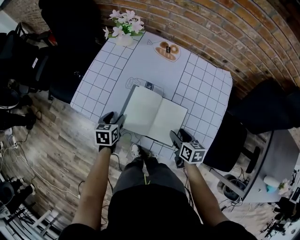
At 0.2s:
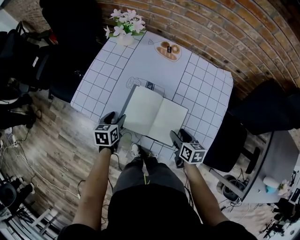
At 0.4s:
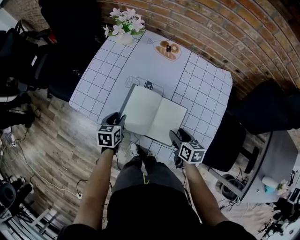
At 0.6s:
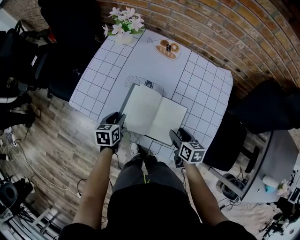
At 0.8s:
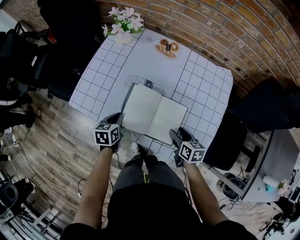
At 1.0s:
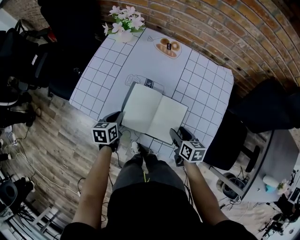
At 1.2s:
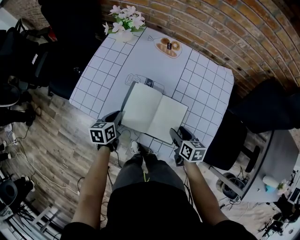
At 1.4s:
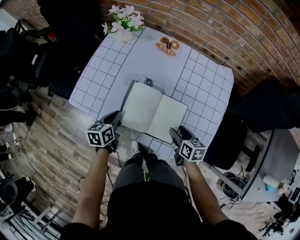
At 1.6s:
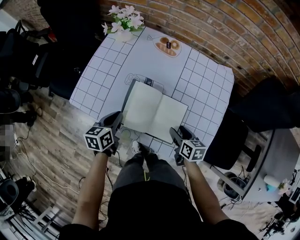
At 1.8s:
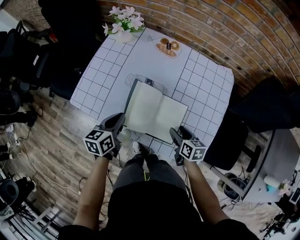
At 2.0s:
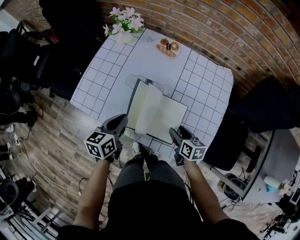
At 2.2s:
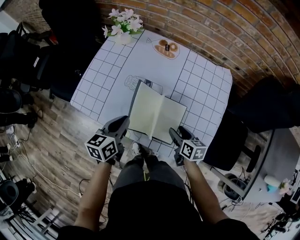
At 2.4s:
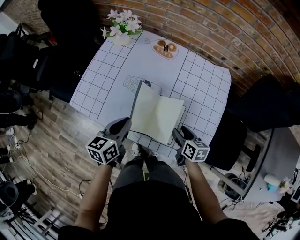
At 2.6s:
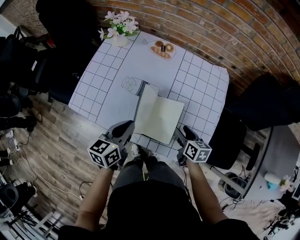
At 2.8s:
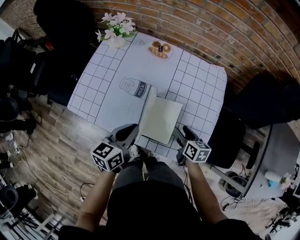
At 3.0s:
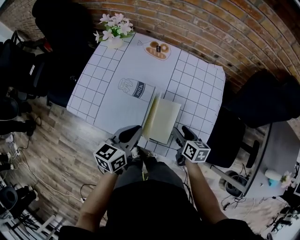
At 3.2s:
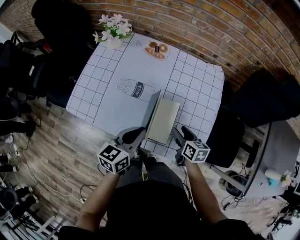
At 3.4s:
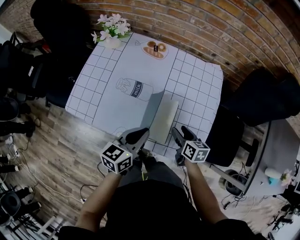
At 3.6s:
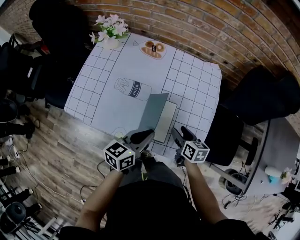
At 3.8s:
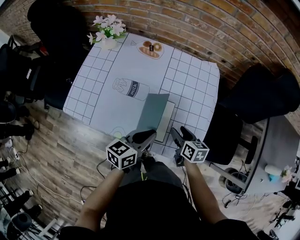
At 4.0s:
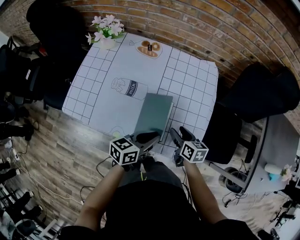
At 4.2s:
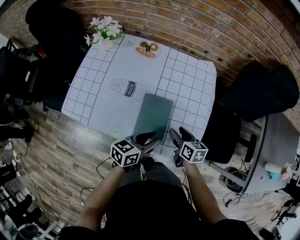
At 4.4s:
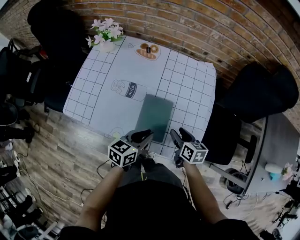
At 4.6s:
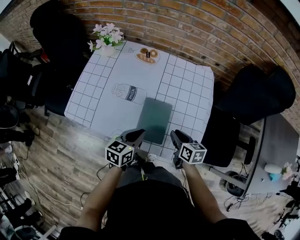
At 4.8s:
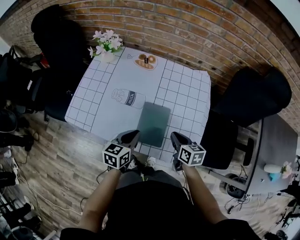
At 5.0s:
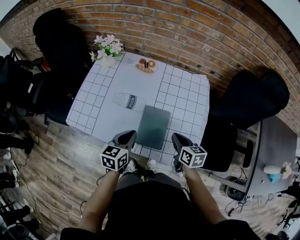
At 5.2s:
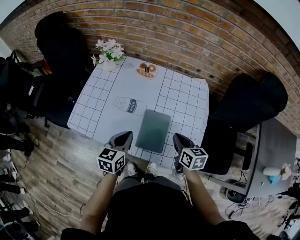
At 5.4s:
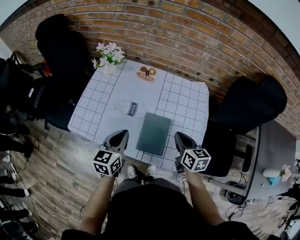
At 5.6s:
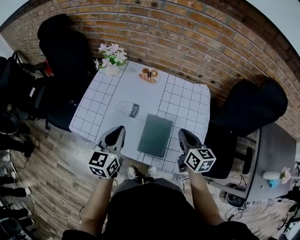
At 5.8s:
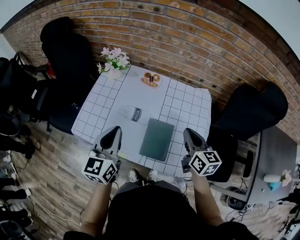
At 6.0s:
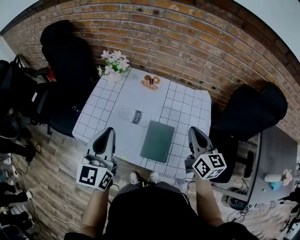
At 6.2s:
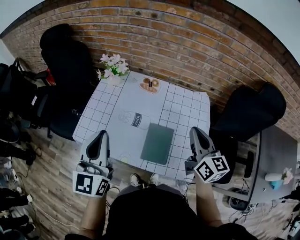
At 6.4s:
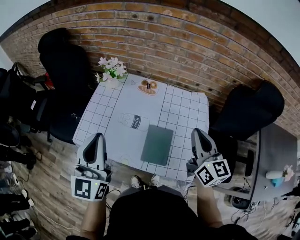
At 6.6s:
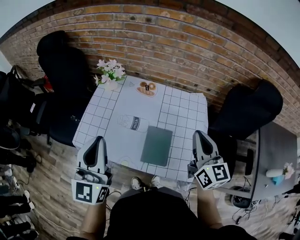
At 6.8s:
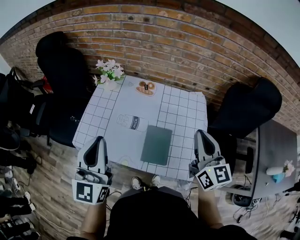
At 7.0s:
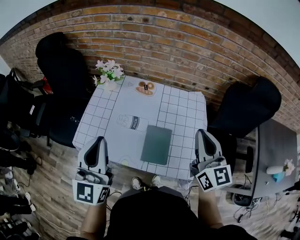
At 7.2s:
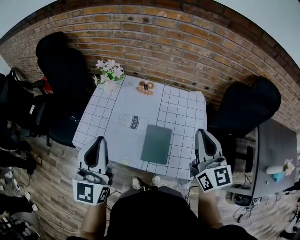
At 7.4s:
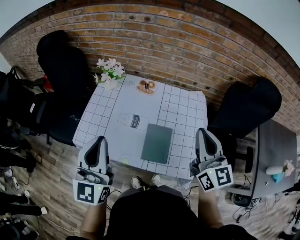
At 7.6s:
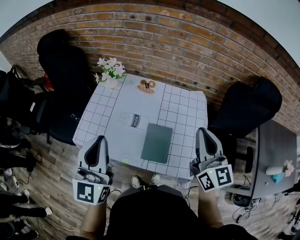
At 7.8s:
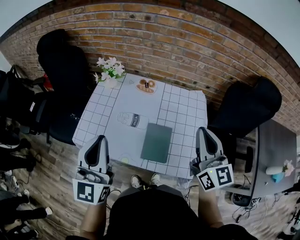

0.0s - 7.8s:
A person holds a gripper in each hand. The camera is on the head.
0.0s - 1.6s: The left gripper goes approximately 5 cm upward, and closes up.
1.6s - 3.2s: The left gripper heads to the right and upward, covering about 15 cm, and rotates roughly 20 degrees. Meanwhile the right gripper changes place by some 5 cm.
3.2s - 4.6s: The right gripper closes its fingers. The left gripper is displaced downward by approximately 5 cm, reaches some 10 cm to the right, then returns, and opens and closes again.
4.6s - 6.2s: The right gripper heads upward, covering roughly 25 cm, tips its fingers upward by approximately 30 degrees, and closes up. The left gripper travels upward and to the left by some 35 cm, and tilts its fingers roughly 30 degrees upward.
6.2s - 7.8s: The right gripper goes roughly 10 cm upward.

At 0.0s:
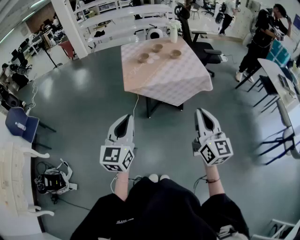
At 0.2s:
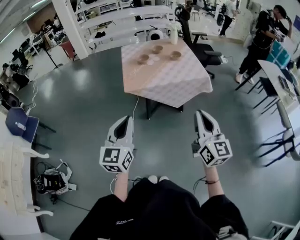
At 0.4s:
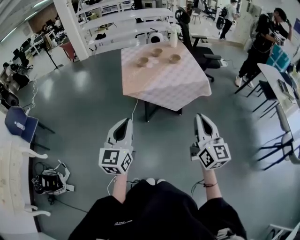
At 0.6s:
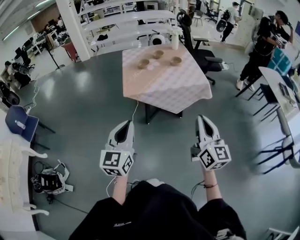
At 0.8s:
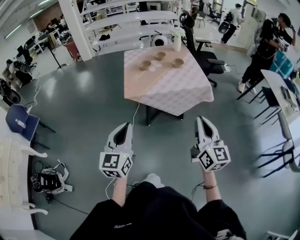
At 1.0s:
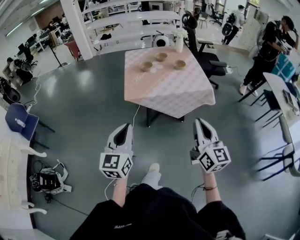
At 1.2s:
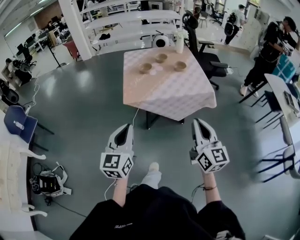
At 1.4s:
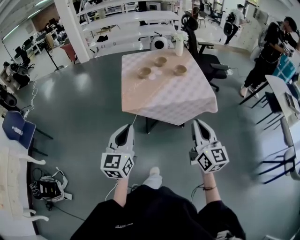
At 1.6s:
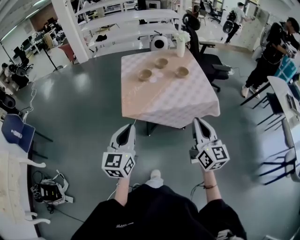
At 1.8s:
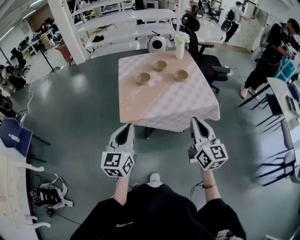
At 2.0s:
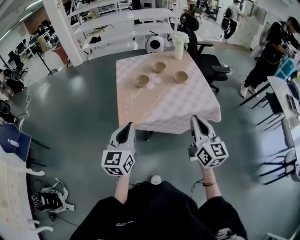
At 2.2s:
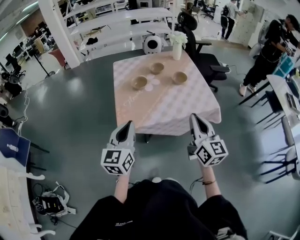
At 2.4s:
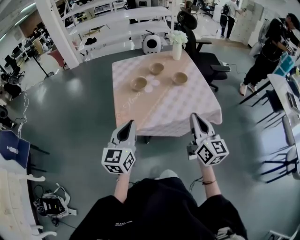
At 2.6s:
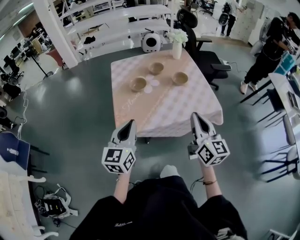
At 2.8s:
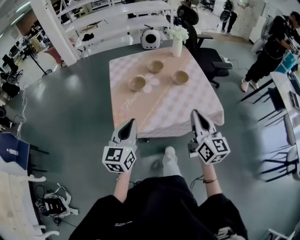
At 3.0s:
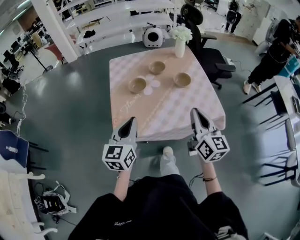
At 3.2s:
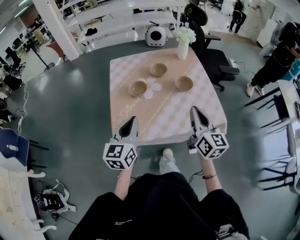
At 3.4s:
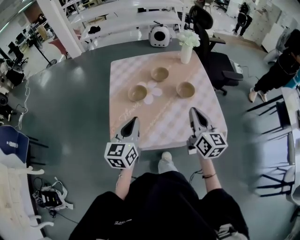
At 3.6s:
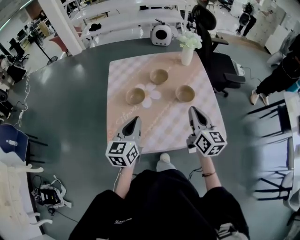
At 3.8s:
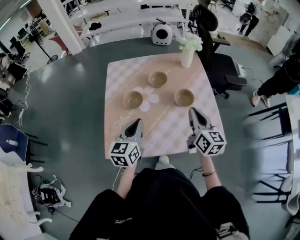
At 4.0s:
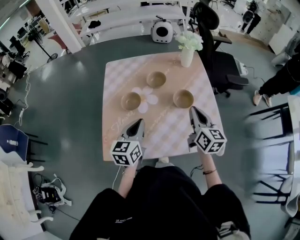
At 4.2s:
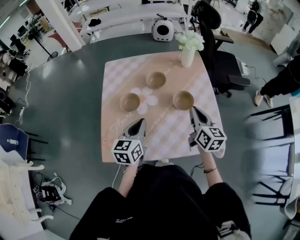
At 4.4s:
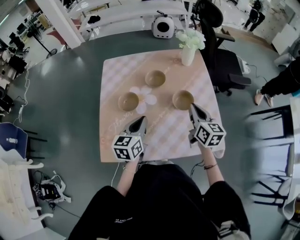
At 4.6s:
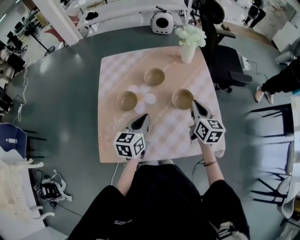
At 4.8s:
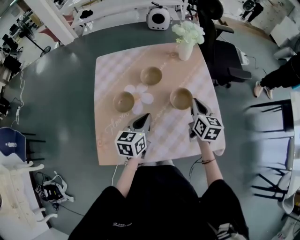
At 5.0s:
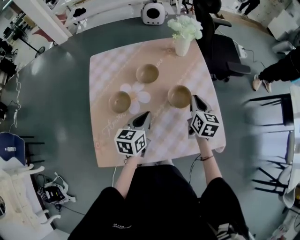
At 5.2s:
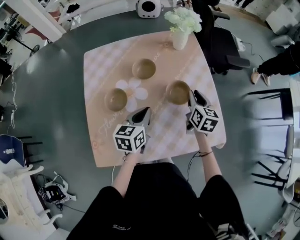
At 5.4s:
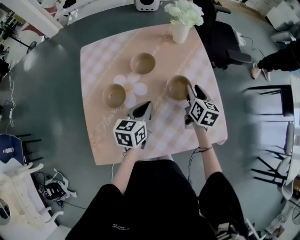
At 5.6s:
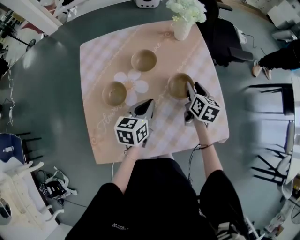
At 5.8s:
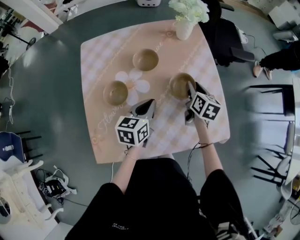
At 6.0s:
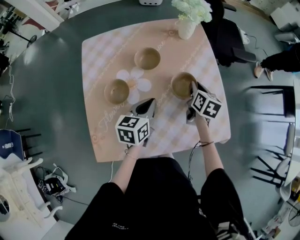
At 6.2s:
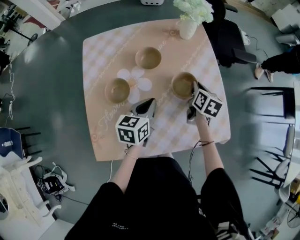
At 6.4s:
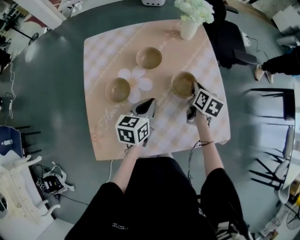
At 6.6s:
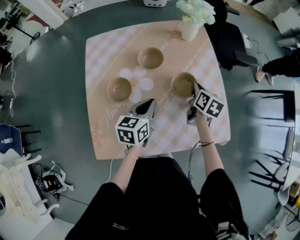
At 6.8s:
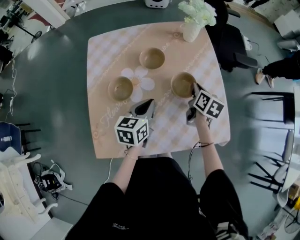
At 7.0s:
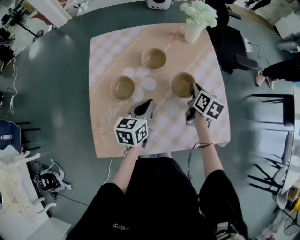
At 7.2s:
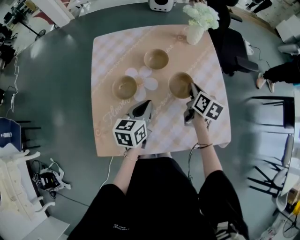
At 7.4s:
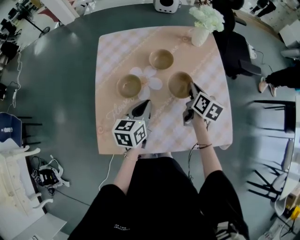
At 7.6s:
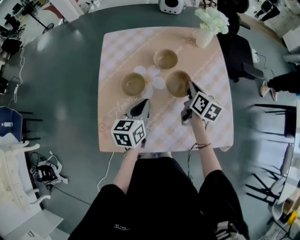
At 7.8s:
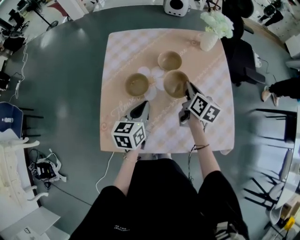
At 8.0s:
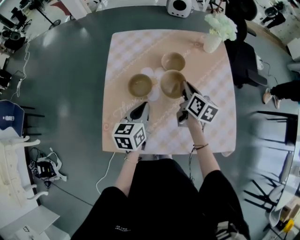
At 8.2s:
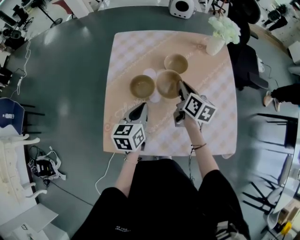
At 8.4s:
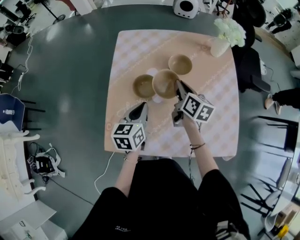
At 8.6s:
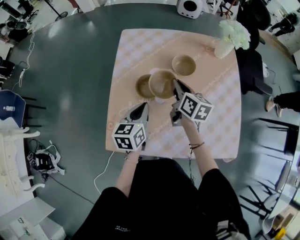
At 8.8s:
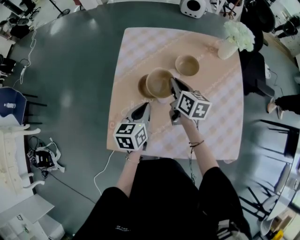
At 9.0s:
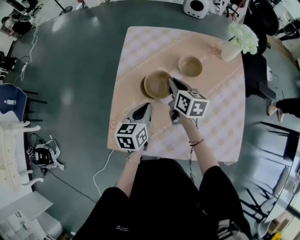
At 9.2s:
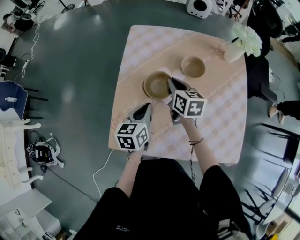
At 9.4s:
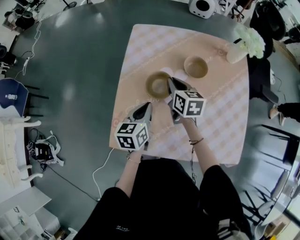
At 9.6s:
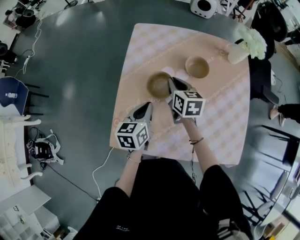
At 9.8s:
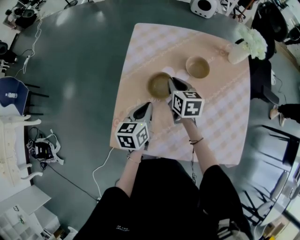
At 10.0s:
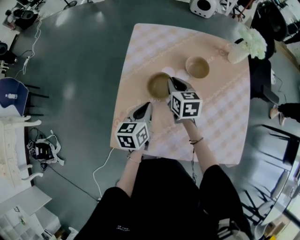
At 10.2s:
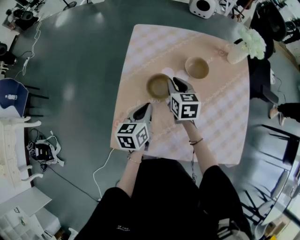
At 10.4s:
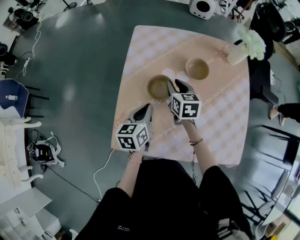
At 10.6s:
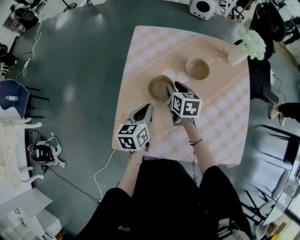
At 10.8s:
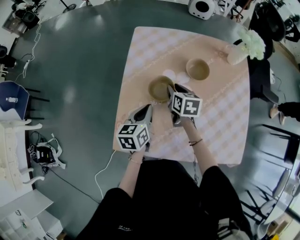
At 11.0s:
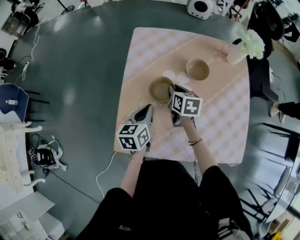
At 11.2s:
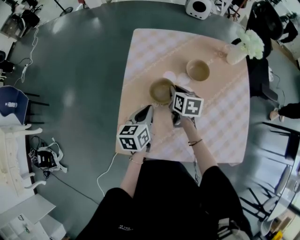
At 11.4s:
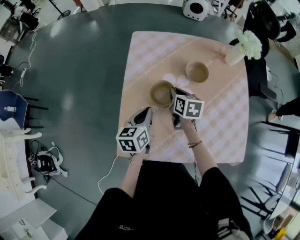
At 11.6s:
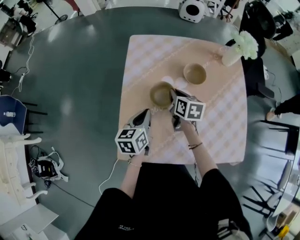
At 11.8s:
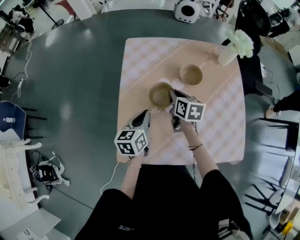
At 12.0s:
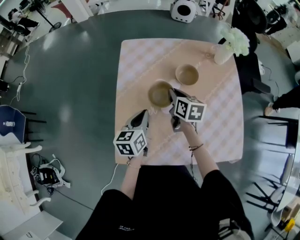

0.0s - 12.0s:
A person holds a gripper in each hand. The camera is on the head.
0.0s - 1.6s: The two grippers go some 20 cm forward.
1.6s - 3.0s: The two grippers go about 25 cm forward.
3.0s - 4.4s: The right gripper travels forward and downward by roughly 30 cm, while the left gripper travels forward, downward and to the right by about 25 cm.
4.4s - 6.0s: The right gripper travels downward and forward by approximately 15 cm, swivels approximately 30 degrees, and opens, then closes once more. The left gripper is displaced forward and downward by approximately 10 cm.
6.0s - 7.6s: Both grippers move to the left, roughly 10 cm.
7.6s - 9.0s: The right gripper travels to the left by some 20 cm, and changes its angle by about 20 degrees. The left gripper heads to the left, covering roughly 10 cm.
9.0s - 10.4s: The right gripper opens.
10.4s - 12.0s: The right gripper closes.

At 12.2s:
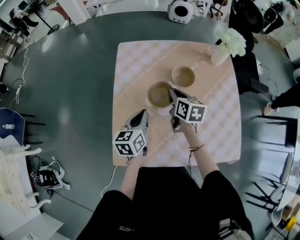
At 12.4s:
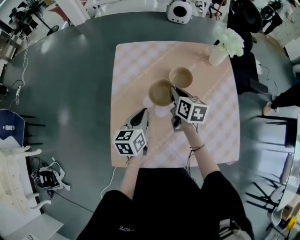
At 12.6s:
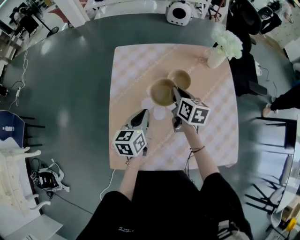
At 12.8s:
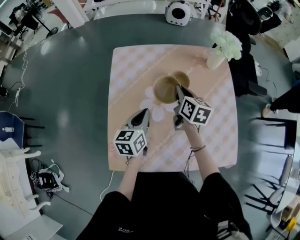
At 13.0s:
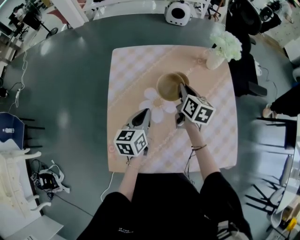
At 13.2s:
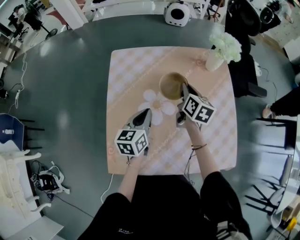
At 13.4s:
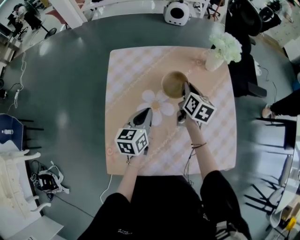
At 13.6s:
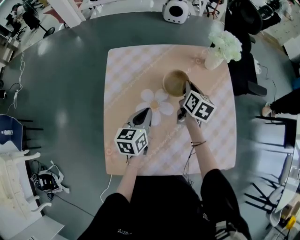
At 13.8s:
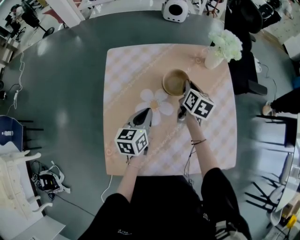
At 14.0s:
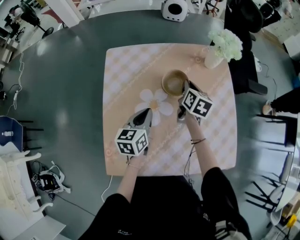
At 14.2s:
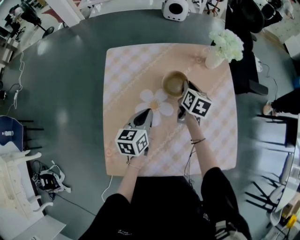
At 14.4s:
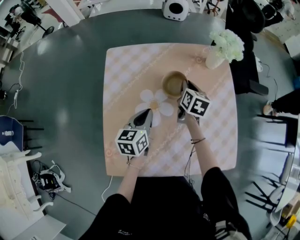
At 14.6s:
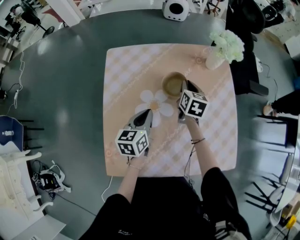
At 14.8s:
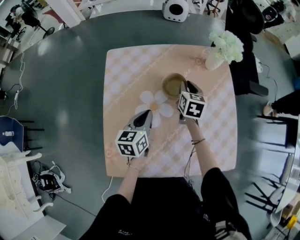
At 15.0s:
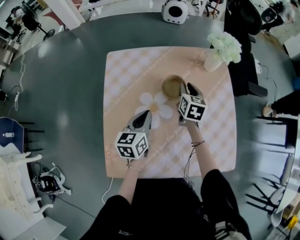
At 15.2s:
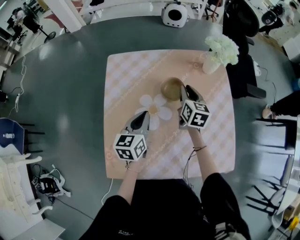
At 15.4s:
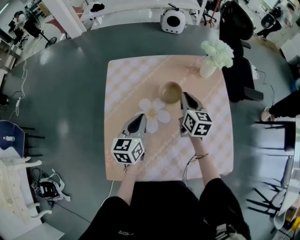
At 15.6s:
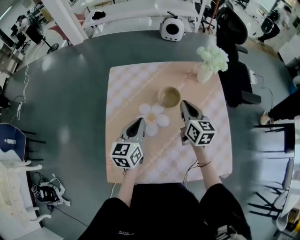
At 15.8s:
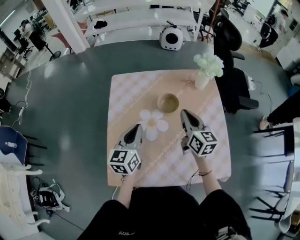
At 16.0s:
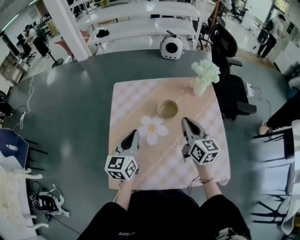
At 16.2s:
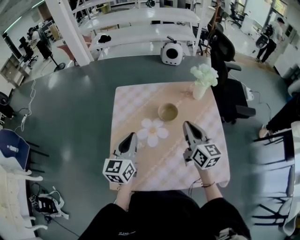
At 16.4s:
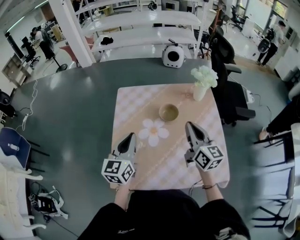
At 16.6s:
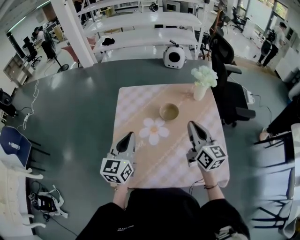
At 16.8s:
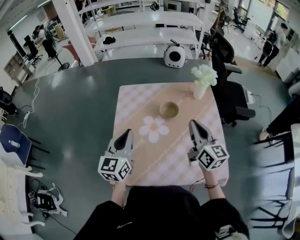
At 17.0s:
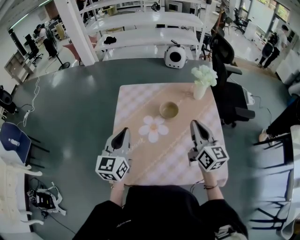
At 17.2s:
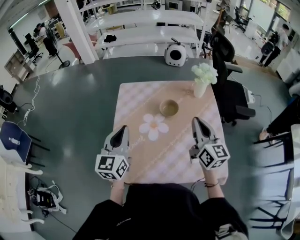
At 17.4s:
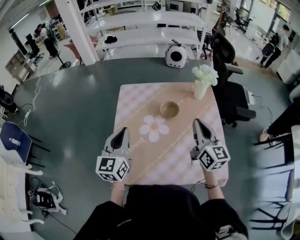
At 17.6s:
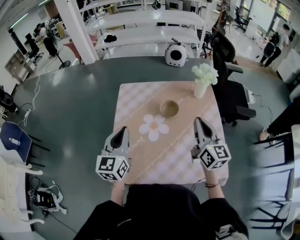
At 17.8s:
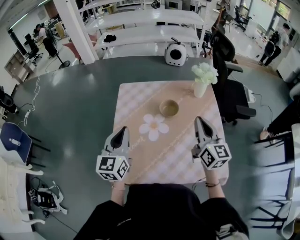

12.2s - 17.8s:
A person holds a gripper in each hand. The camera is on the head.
12.2s - 13.6s: The left gripper moves to the right and forward, some 10 cm. Meanwhile the right gripper moves to the right and forward, about 15 cm, and turns by about 20 degrees.
13.6s - 15.0s: The grippers move only a little.
15.0s - 16.4s: Both grippers travel together upward and backward, roughly 20 cm. The left gripper changes its angle by some 20 degrees, while the right gripper angles its fingers upward, by approximately 30 degrees.
16.4s - 17.8s: The grippers move only a little.
